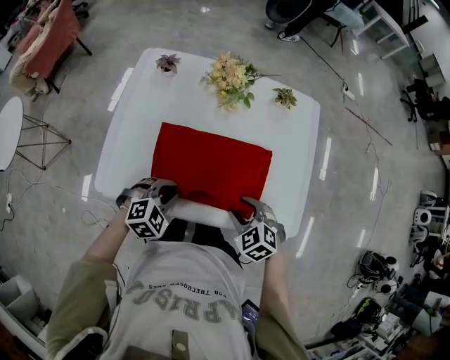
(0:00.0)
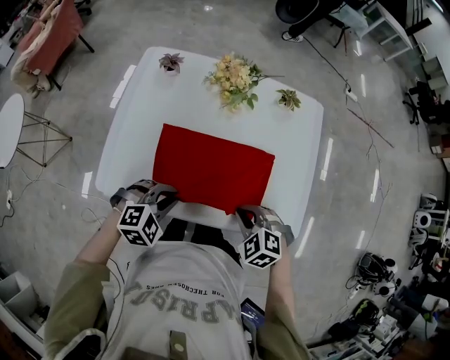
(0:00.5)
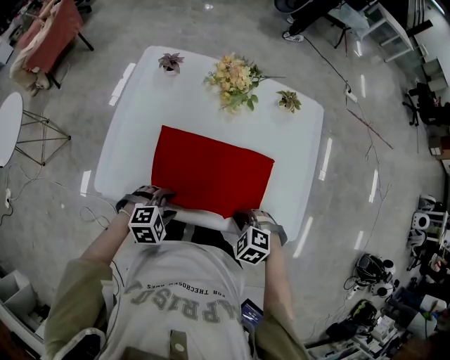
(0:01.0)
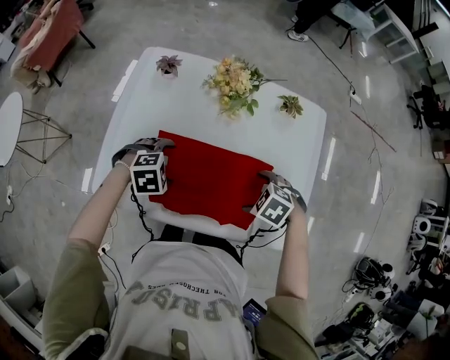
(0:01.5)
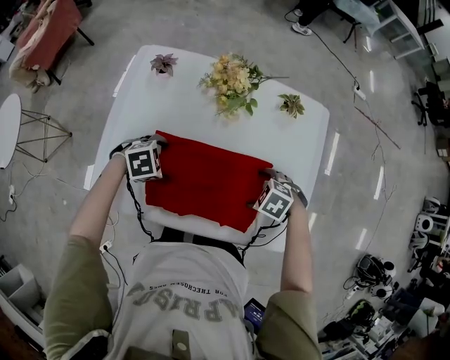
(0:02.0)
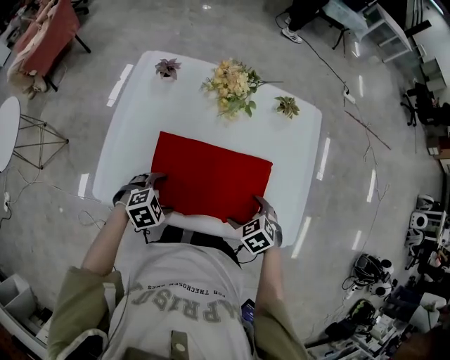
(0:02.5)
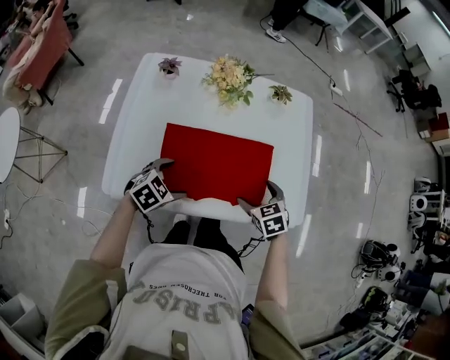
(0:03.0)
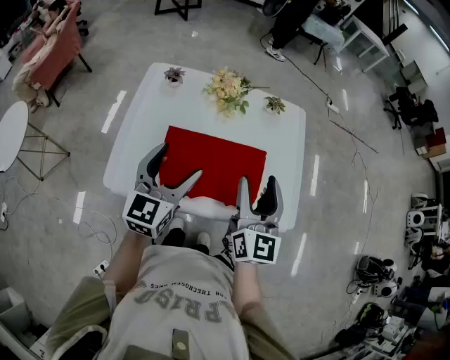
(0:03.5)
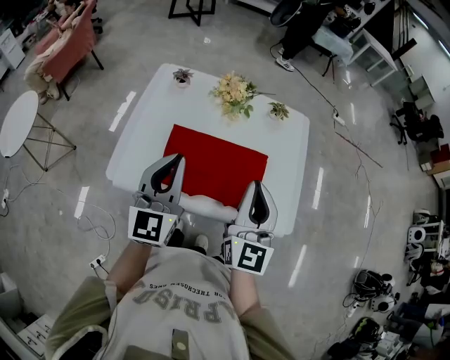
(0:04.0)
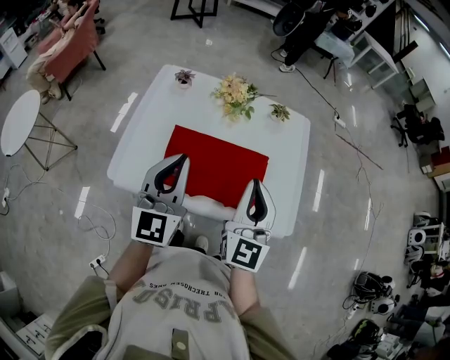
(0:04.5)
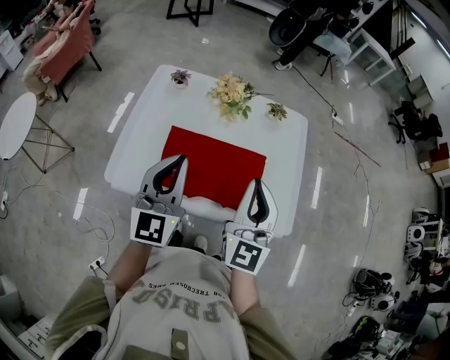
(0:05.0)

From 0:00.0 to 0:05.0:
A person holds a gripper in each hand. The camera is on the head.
From 0:00.0 to 0:02.5: The right gripper opens up, while the left gripper opens up.
From 0:02.5 to 0:05.0: The grippers both shift upward by about 30 cm. The left gripper tilts its fingers some 70 degrees upward, and closes up. The right gripper points its fingers approximately 70 degrees further upward, and closes.

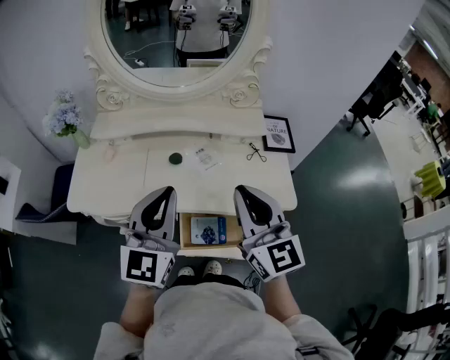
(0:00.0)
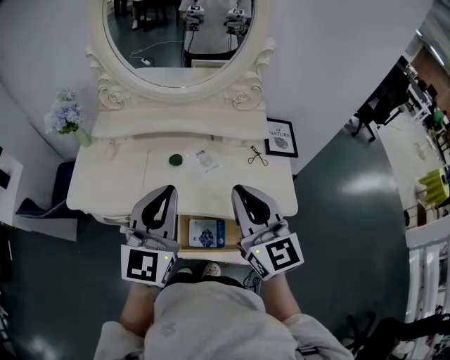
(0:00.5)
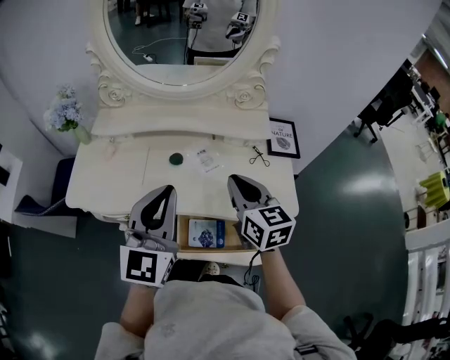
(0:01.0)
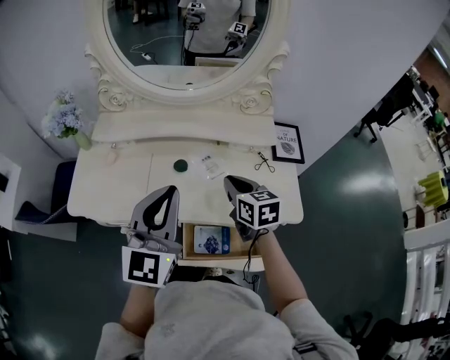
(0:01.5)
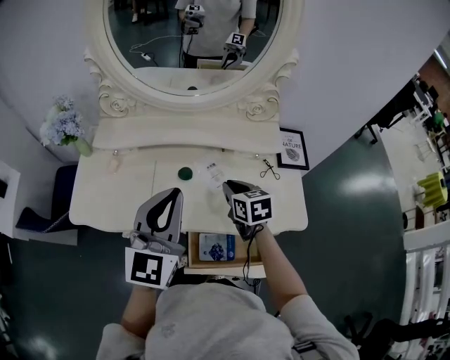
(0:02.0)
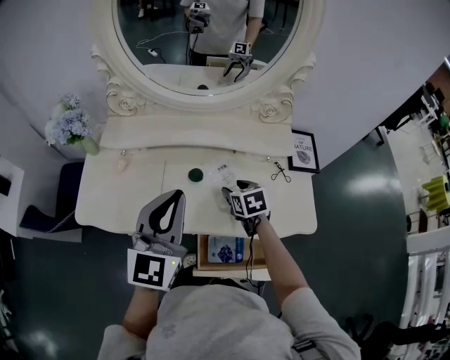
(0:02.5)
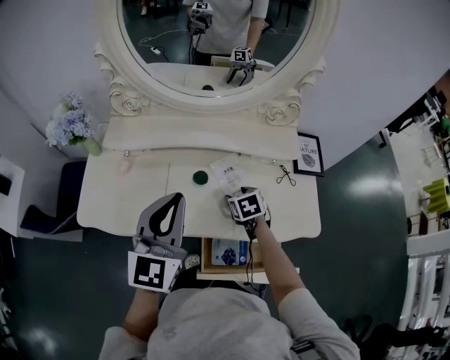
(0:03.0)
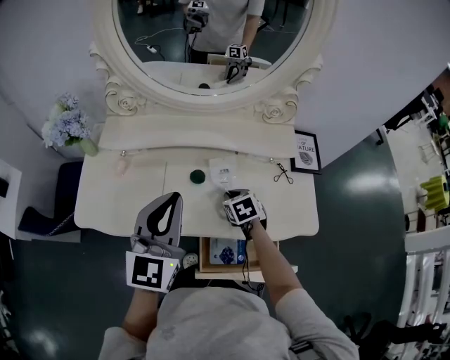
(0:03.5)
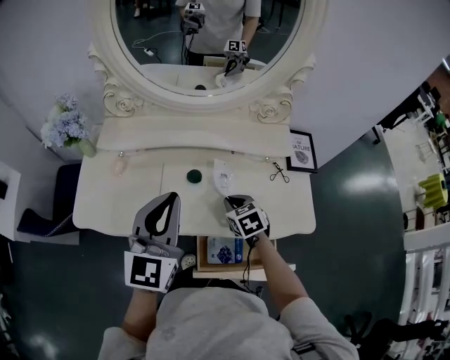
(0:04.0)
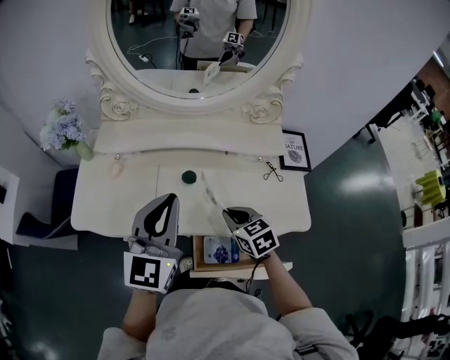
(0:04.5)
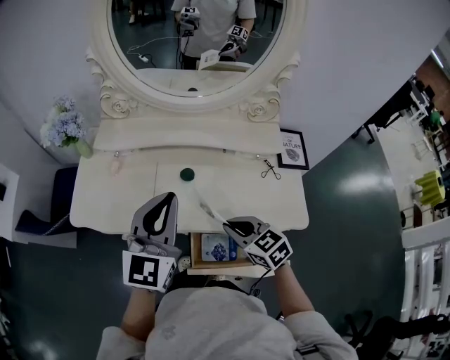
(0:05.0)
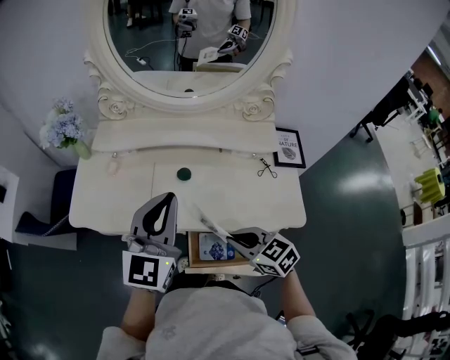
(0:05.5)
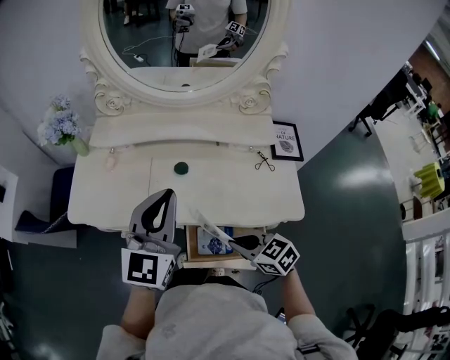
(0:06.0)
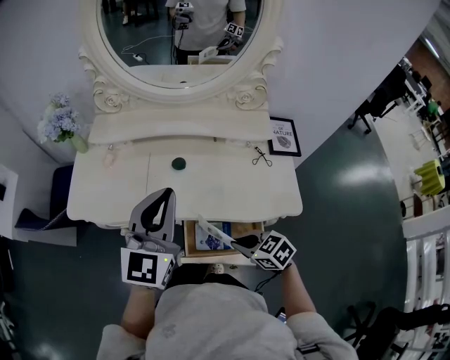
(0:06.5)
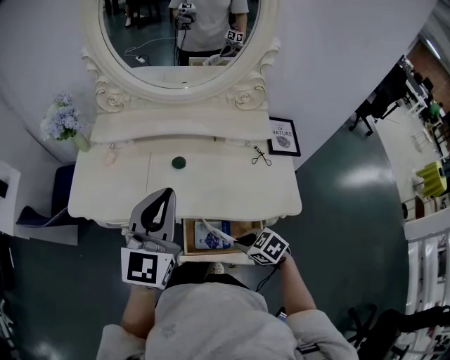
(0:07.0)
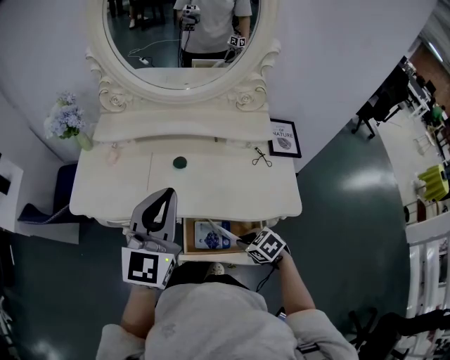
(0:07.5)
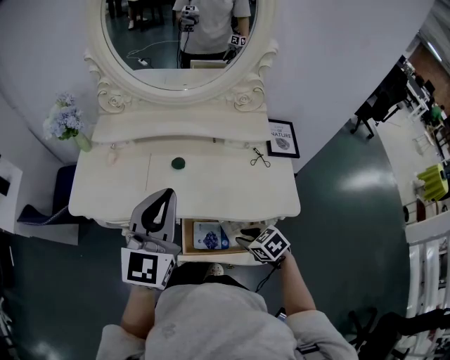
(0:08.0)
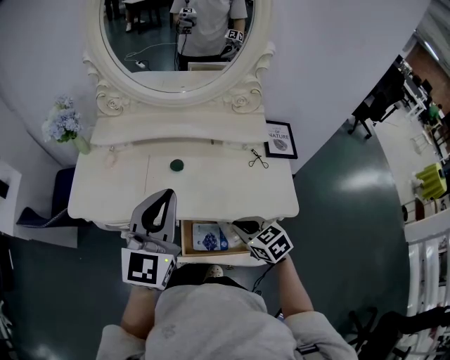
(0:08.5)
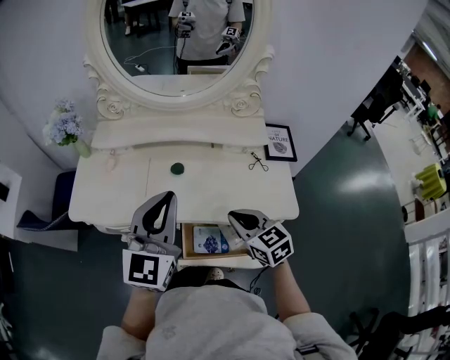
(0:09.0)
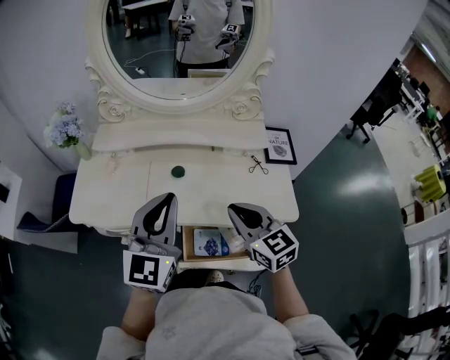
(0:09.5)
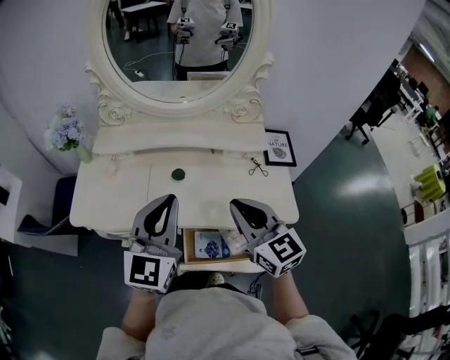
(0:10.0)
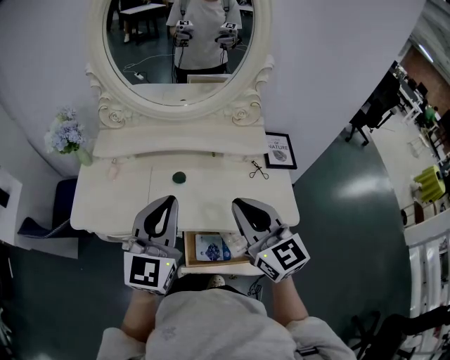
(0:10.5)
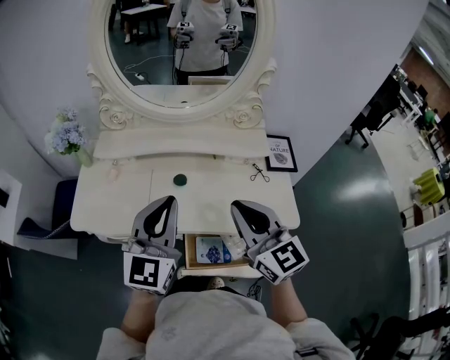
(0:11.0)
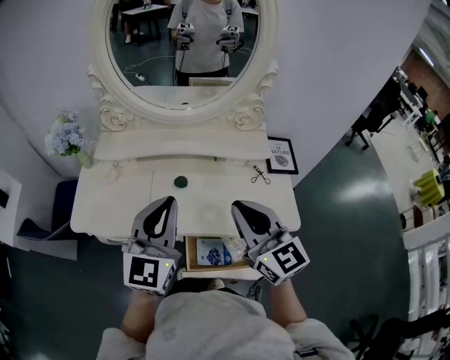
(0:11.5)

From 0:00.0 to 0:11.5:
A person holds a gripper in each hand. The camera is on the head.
From 0:00.0 to 0:02.0: The right gripper moves downward and forward, approximately 30 cm, and angles its fingers downward, by about 40 degrees, while the left gripper is displaced forward by approximately 10 cm.
From 0:02.0 to 0:04.0: The right gripper travels downward by roughly 5 cm, and opens and closes again.
From 0:04.0 to 0:06.0: The left gripper ends up some 5 cm from where it was, while the right gripper goes about 20 cm backward, and rotates some 30 degrees.
From 0:06.0 to 0:07.5: The right gripper moves downward, roughly 10 cm, and turns by roughly 20 degrees.
From 0:07.5 to 0:09.5: The right gripper travels upward and forward by about 25 cm, tips its fingers upward by approximately 40 degrees, and opens and closes again.
From 0:09.5 to 0:11.5: The right gripper shifts about 10 cm upward.

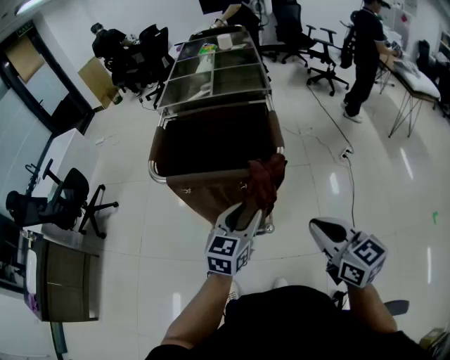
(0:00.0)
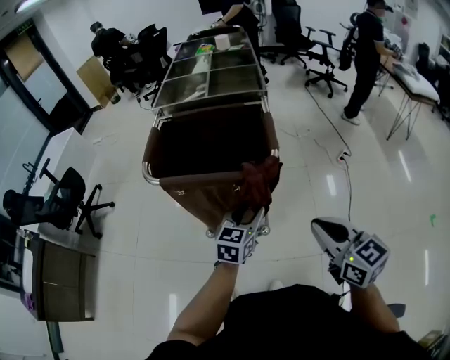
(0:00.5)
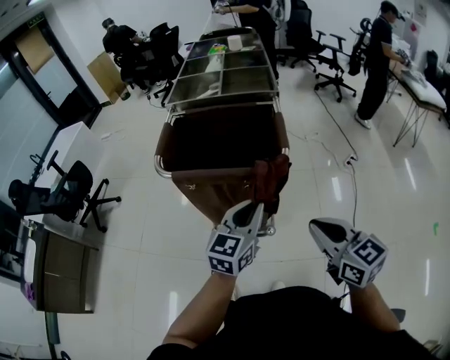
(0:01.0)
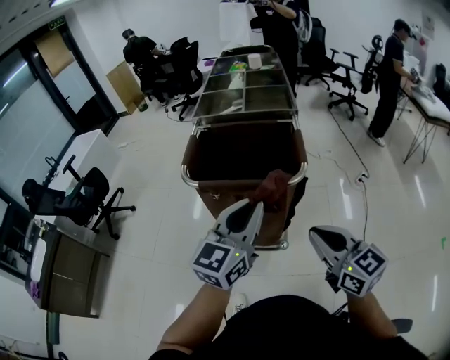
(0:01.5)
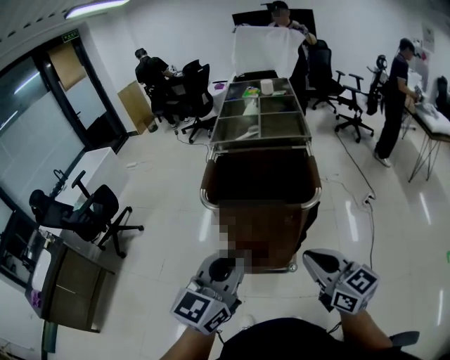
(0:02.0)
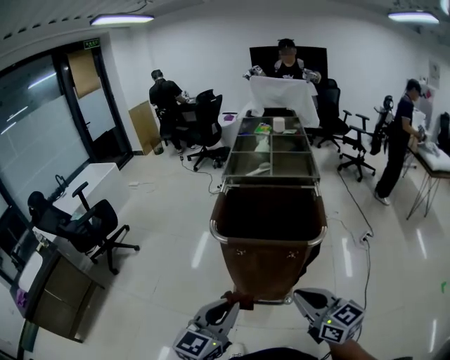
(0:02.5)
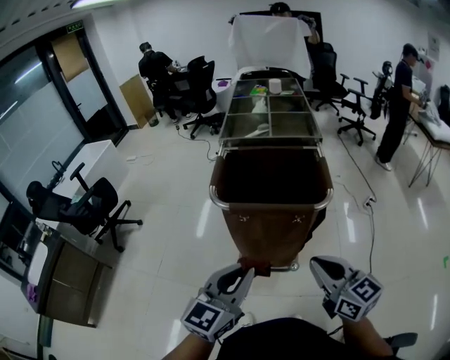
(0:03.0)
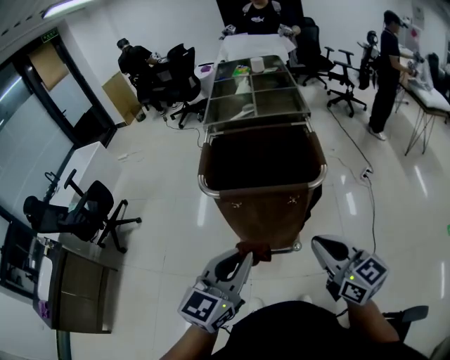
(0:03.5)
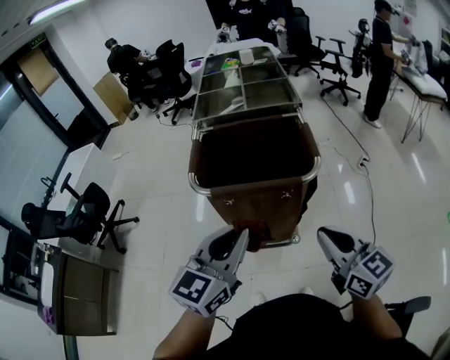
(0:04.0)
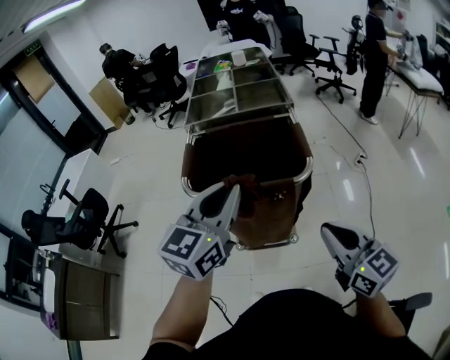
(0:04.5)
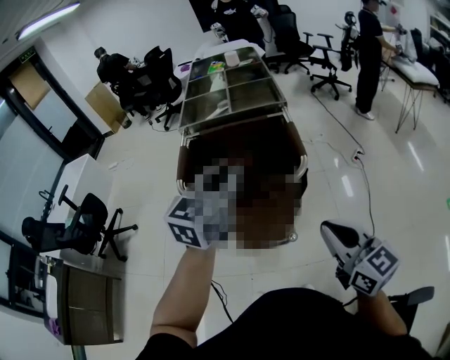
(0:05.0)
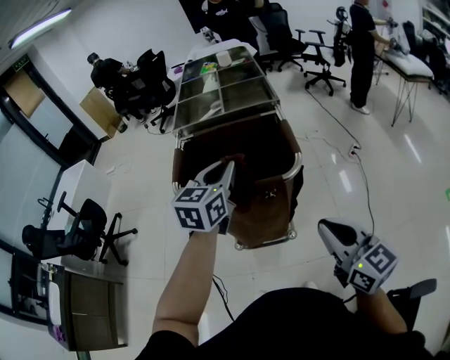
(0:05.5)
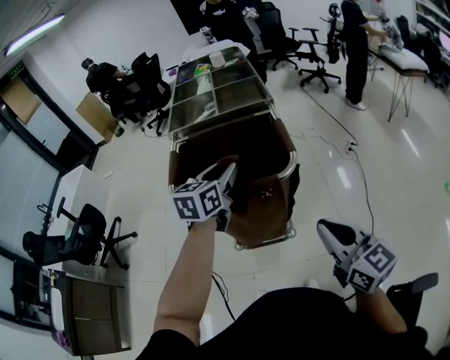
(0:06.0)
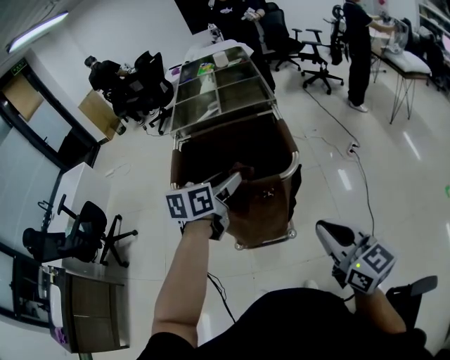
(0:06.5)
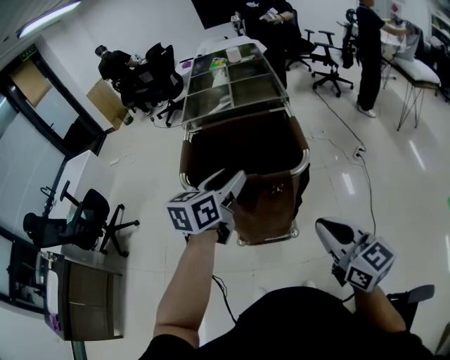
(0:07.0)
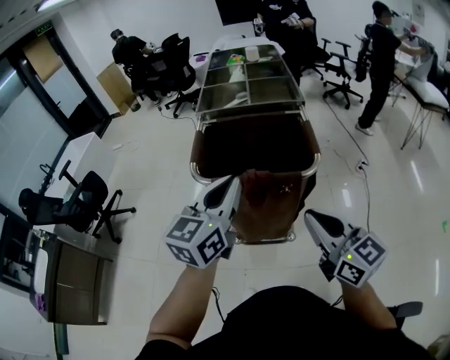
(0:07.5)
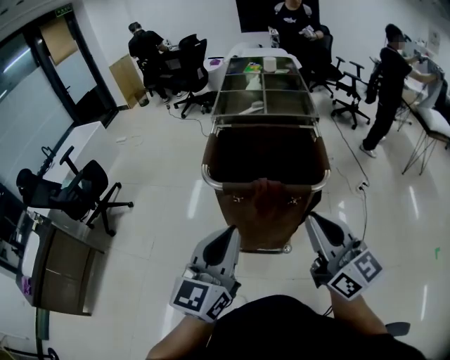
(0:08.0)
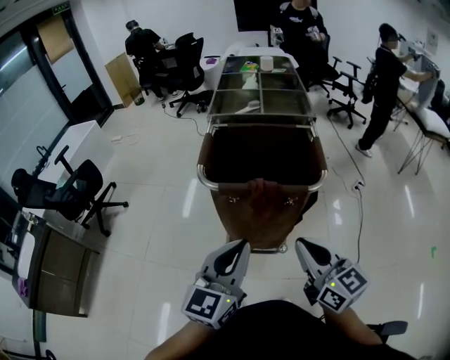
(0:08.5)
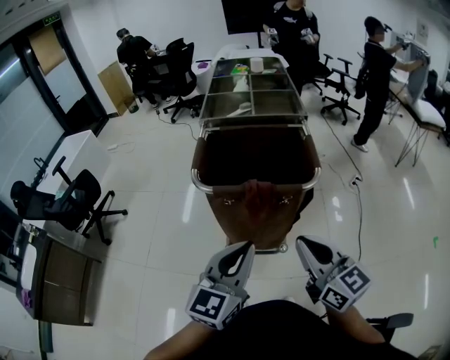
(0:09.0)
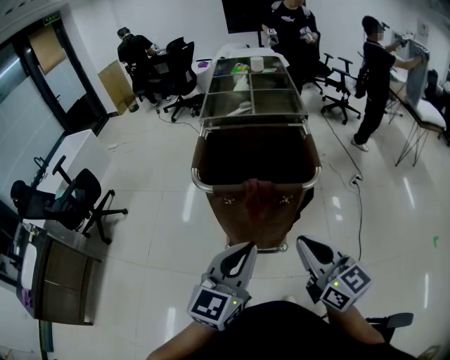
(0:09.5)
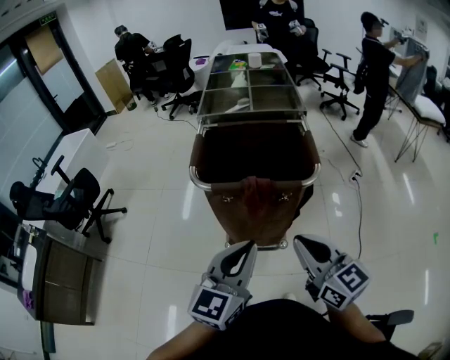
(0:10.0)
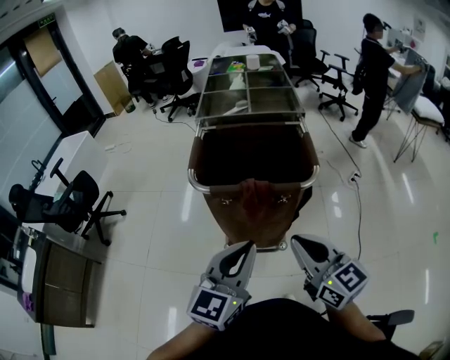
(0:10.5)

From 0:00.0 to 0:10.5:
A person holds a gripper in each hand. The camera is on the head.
From 0:00.0 to 0:02.0: The left gripper is displaced upward, to the left and backward by some 25 cm, and closes its fingers, while the right gripper heads to the left and upward, covering some 15 cm.
From 0:04.0 to 0:06.5: The left gripper goes about 20 cm forward, changes its angle by approximately 30 degrees, and opens up.
From 0:06.5 to 0:08.5: The left gripper travels backward by about 20 cm, swivels some 30 degrees, and closes its fingers. Meanwhile the right gripper moves to the left, some 10 cm.
From 0:08.5 to 0:10.5: There are only small adjustments of the grippers.
